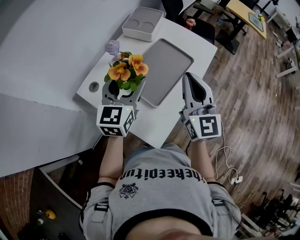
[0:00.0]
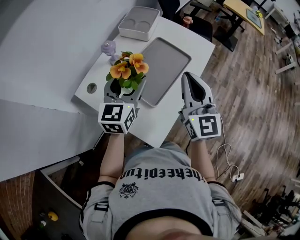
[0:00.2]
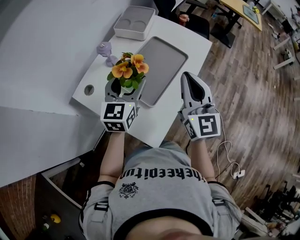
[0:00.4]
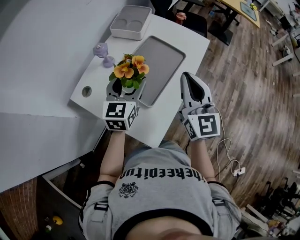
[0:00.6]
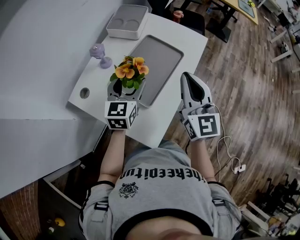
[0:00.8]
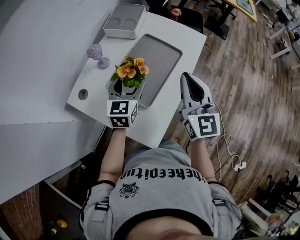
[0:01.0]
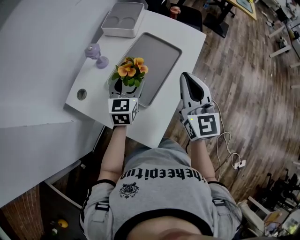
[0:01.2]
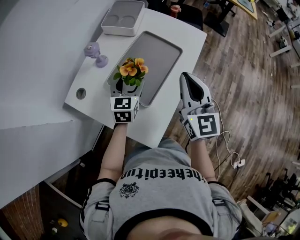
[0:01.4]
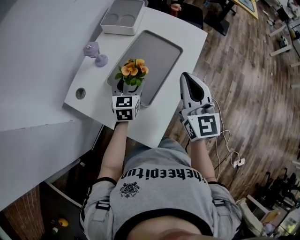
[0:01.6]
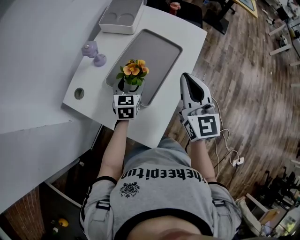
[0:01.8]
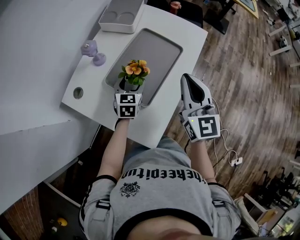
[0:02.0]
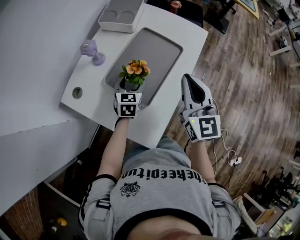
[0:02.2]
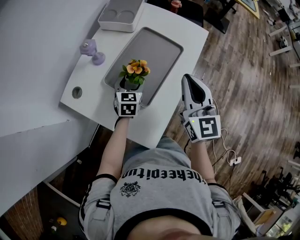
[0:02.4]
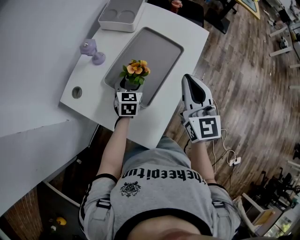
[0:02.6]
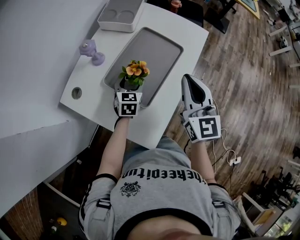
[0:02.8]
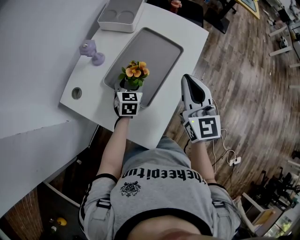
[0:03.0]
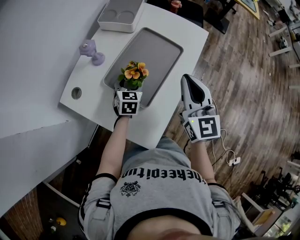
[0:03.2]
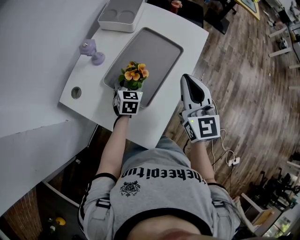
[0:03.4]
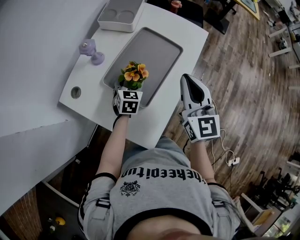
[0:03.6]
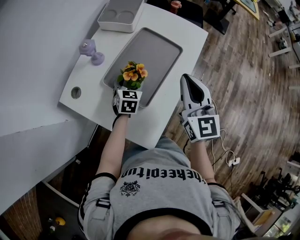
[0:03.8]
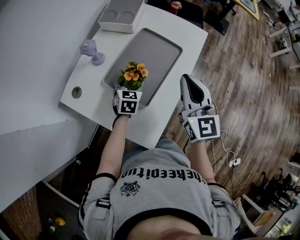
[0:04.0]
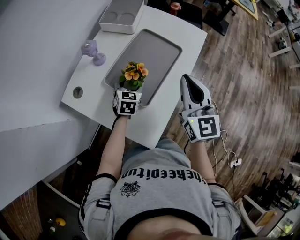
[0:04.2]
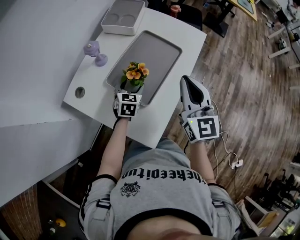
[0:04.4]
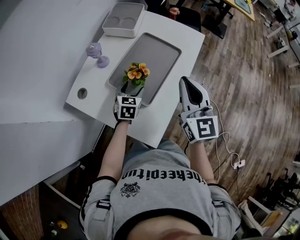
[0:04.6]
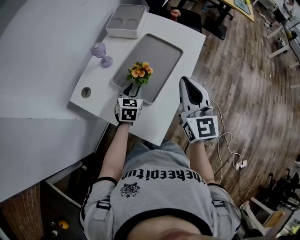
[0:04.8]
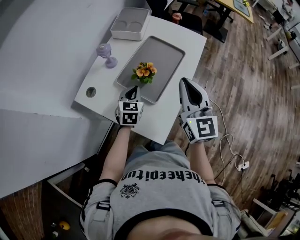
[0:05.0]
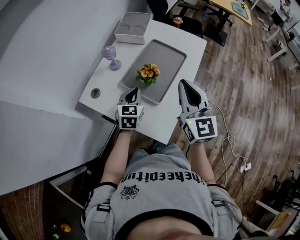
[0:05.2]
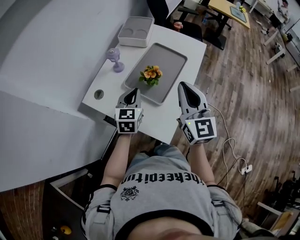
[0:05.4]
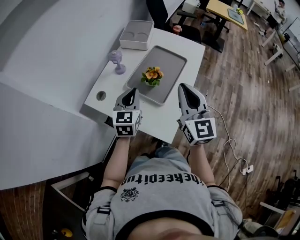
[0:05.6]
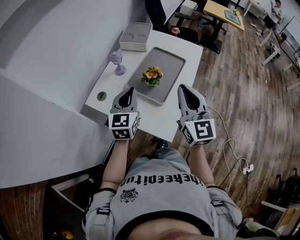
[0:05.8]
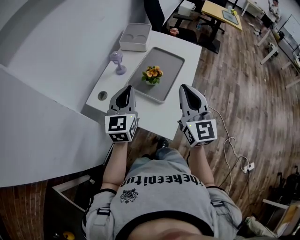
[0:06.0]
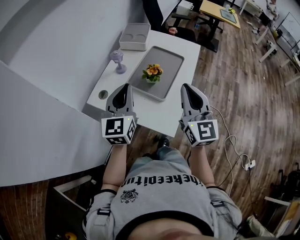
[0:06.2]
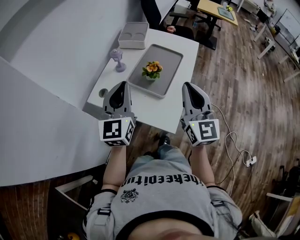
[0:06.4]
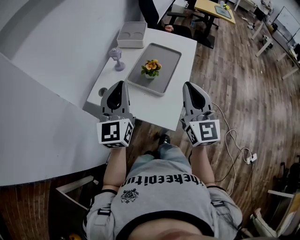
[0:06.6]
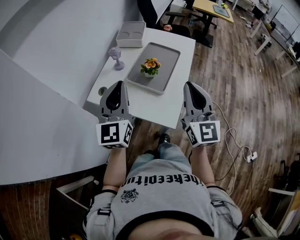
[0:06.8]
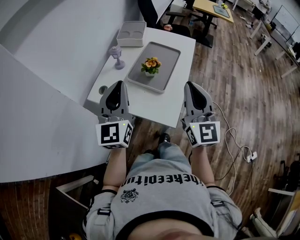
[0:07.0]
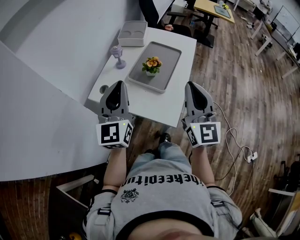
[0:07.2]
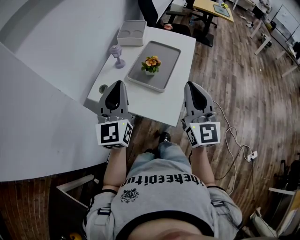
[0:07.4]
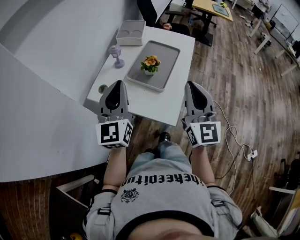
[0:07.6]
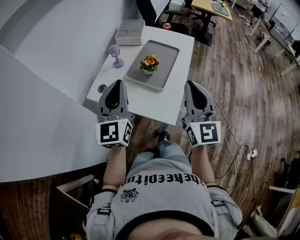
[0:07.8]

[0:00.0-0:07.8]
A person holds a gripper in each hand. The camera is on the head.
0.0 to 1.6 s: The right gripper shifts by some 5 cm, while the left gripper heads downward, covering about 20 cm.
1.6 to 3.2 s: The left gripper travels downward by approximately 10 cm.
3.2 to 4.6 s: The left gripper ends up approximately 5 cm from where it was; the right gripper shifts by roughly 5 cm.
4.6 to 6.2 s: The left gripper heads upward and backward, covering roughly 35 cm, tips its fingers upward by about 40 degrees, and closes; the right gripper shifts roughly 20 cm backward, to the left and upward.
6.2 to 7.8 s: The grippers both shift backward by roughly 5 cm.

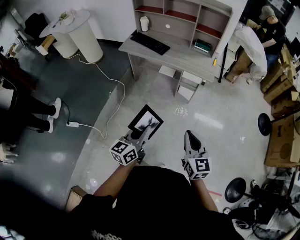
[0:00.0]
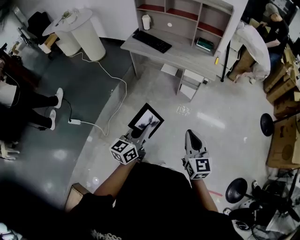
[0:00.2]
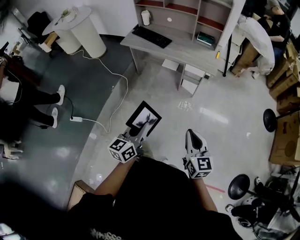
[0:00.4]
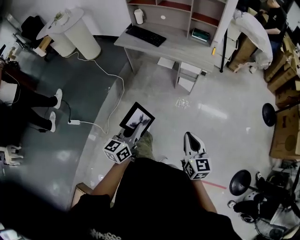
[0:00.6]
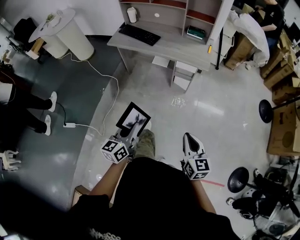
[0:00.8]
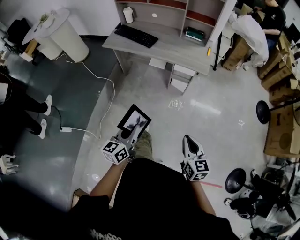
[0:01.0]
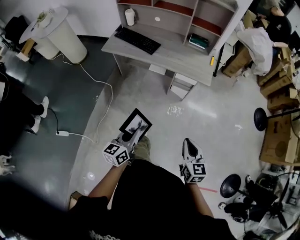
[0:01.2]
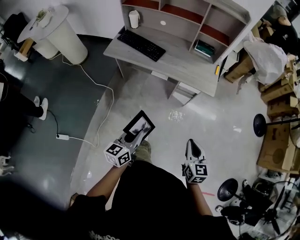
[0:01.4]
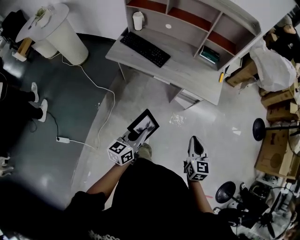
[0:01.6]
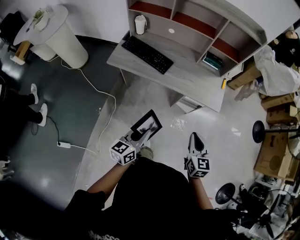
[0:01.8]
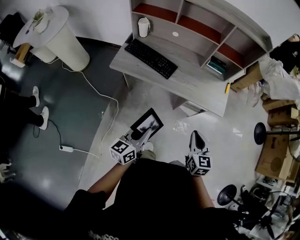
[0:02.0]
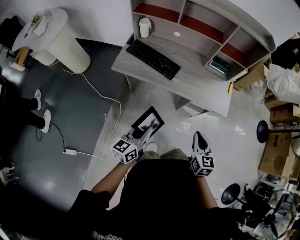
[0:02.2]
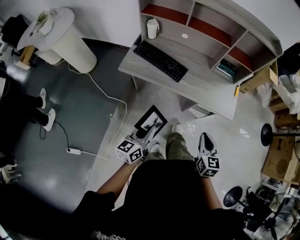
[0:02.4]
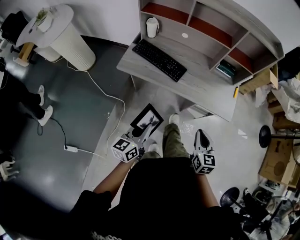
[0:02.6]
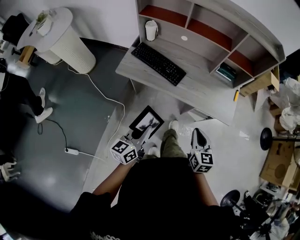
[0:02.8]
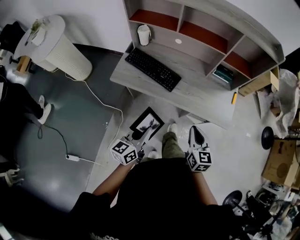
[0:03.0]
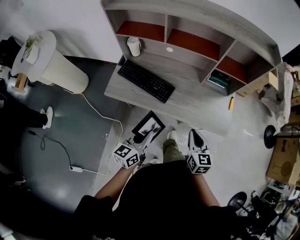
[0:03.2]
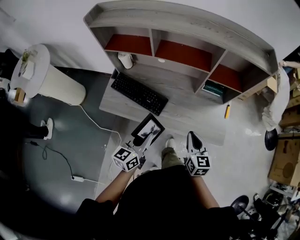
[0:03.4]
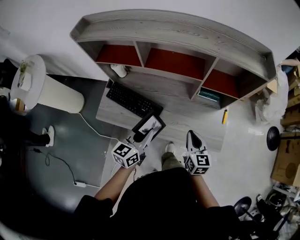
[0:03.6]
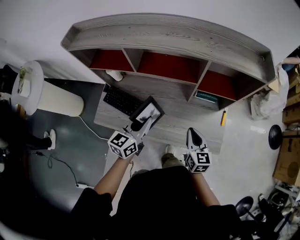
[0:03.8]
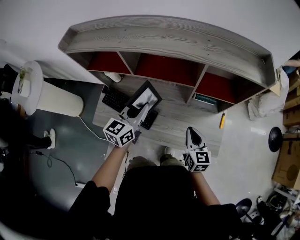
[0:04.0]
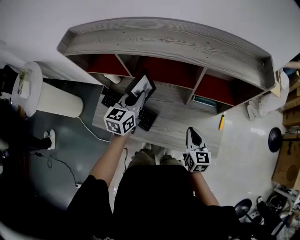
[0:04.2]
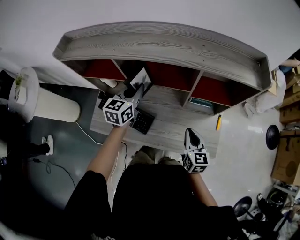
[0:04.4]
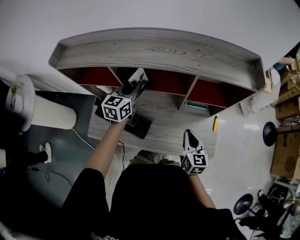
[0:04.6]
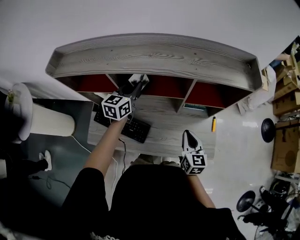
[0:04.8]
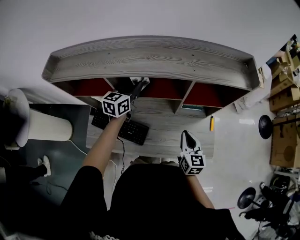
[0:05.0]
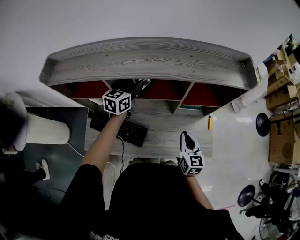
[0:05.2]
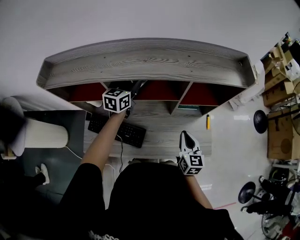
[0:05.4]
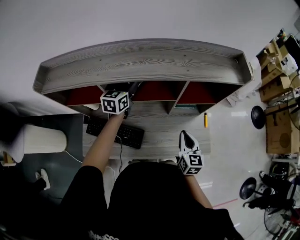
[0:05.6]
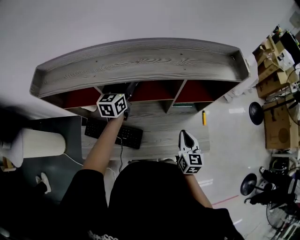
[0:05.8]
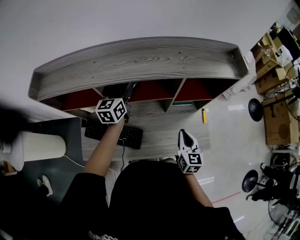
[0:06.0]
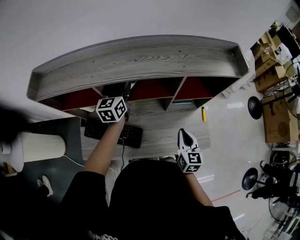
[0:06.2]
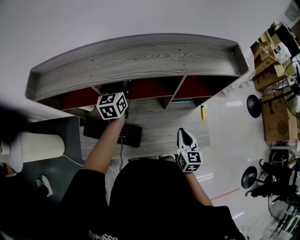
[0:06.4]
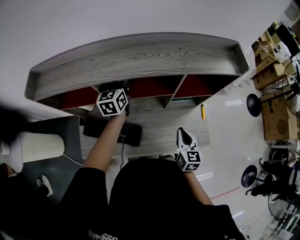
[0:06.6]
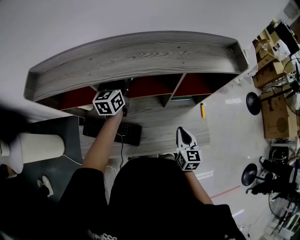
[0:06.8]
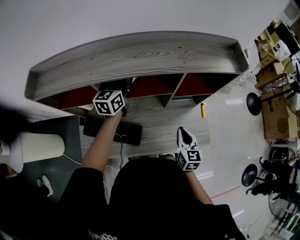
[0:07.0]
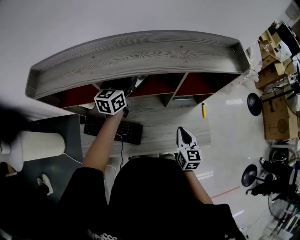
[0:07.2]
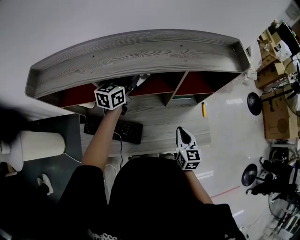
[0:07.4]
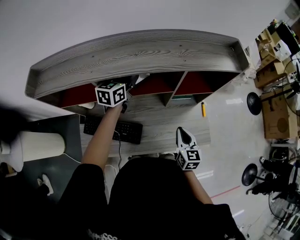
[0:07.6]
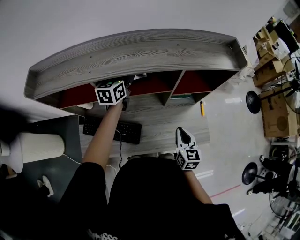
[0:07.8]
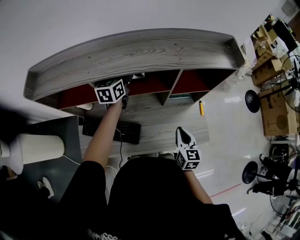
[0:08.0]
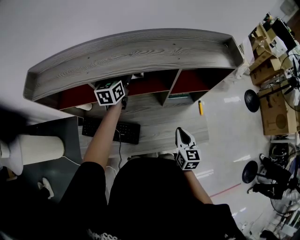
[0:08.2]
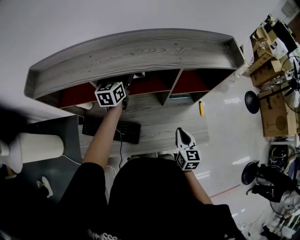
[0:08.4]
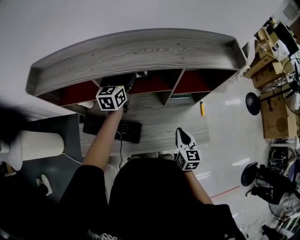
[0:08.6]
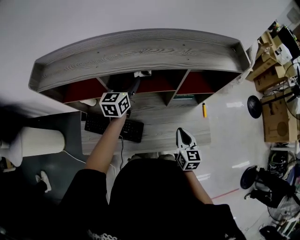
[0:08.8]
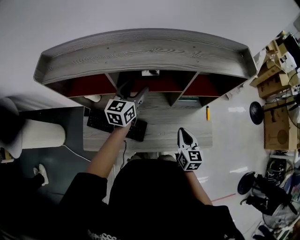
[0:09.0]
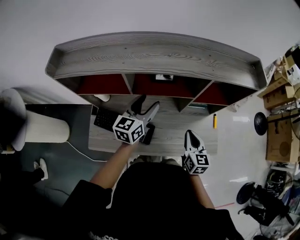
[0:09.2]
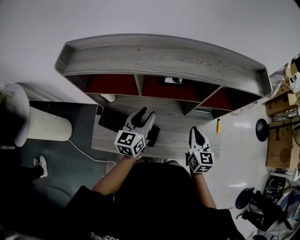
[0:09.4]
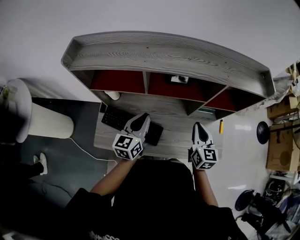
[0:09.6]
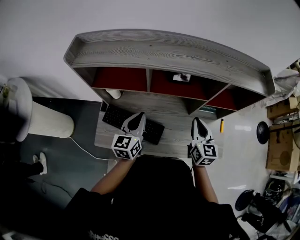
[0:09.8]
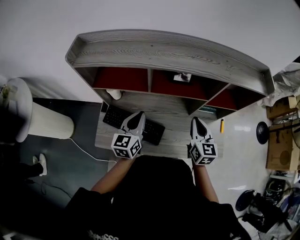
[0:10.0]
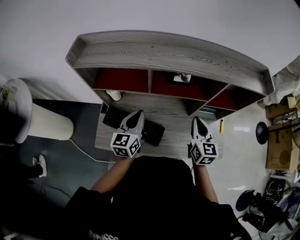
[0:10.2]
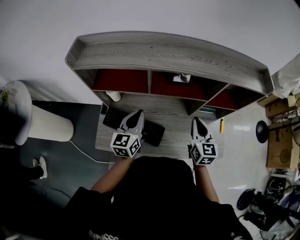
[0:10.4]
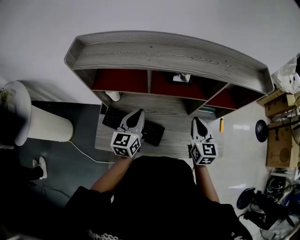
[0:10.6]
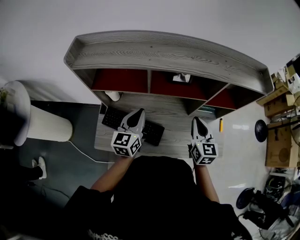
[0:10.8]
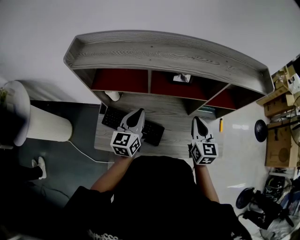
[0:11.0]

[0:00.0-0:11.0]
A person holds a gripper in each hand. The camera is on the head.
0.0 to 1.6 s: The grippers both shift forward by approximately 30 cm. The right gripper rotates approximately 20 degrees.
1.6 to 3.2 s: The left gripper goes approximately 25 cm forward; the right gripper goes roughly 30 cm forward and to the left.
3.2 to 4.8 s: The left gripper travels forward by roughly 50 cm; the right gripper heads forward, covering some 25 cm.
4.8 to 6.2 s: The grippers make only small movements.
7.8 to 9.4 s: The right gripper goes approximately 10 cm to the left and upward. Meanwhile the left gripper is displaced backward by roughly 20 cm, and opens, then closes again.
9.4 to 11.0 s: The left gripper shifts some 5 cm to the left, and closes, while the right gripper changes place by roughly 5 cm.

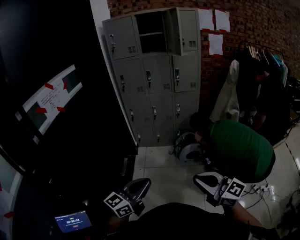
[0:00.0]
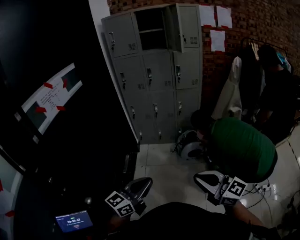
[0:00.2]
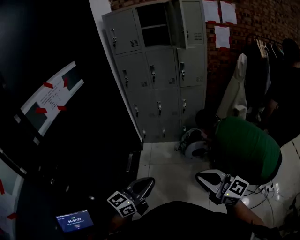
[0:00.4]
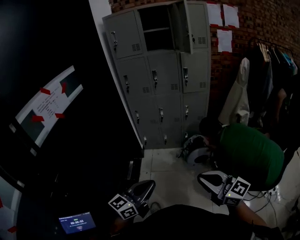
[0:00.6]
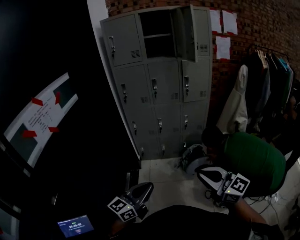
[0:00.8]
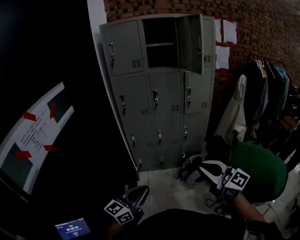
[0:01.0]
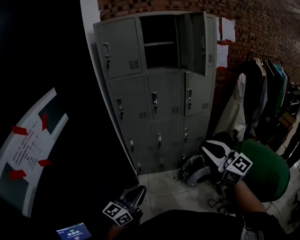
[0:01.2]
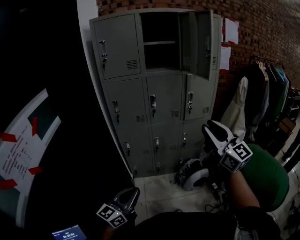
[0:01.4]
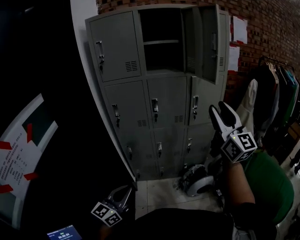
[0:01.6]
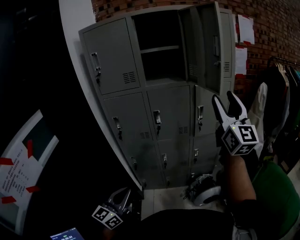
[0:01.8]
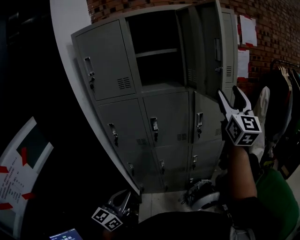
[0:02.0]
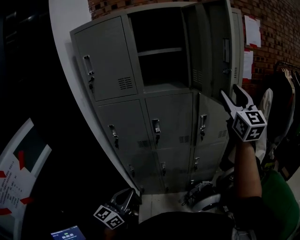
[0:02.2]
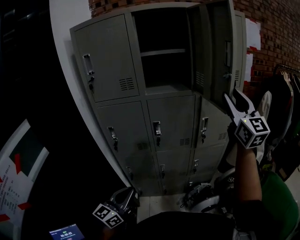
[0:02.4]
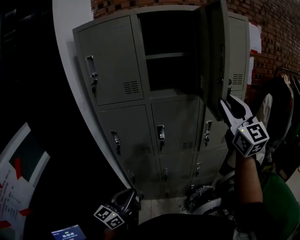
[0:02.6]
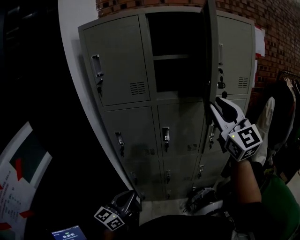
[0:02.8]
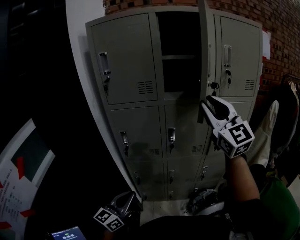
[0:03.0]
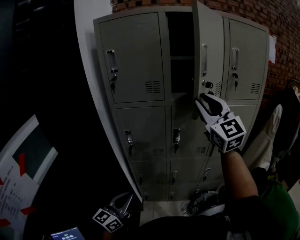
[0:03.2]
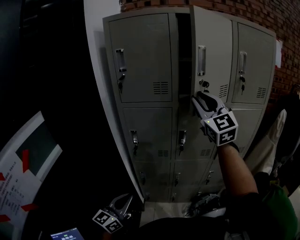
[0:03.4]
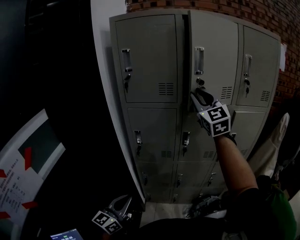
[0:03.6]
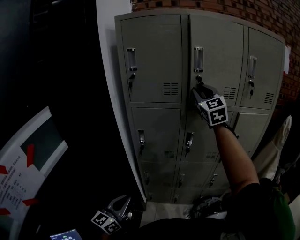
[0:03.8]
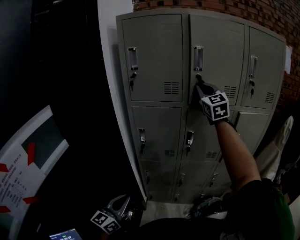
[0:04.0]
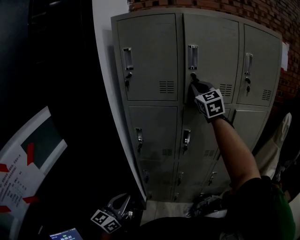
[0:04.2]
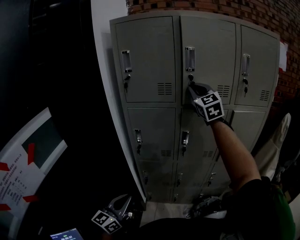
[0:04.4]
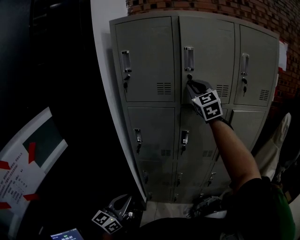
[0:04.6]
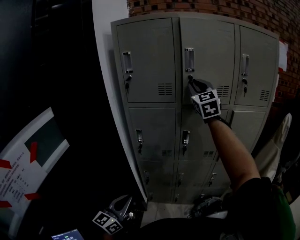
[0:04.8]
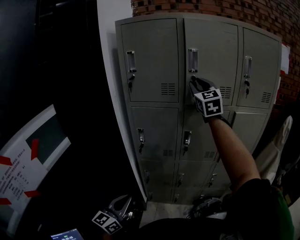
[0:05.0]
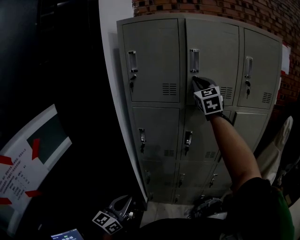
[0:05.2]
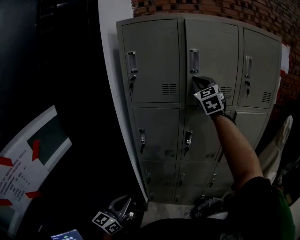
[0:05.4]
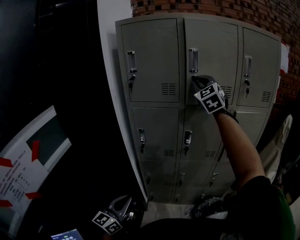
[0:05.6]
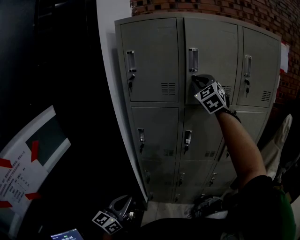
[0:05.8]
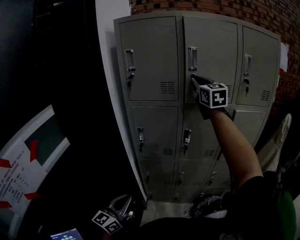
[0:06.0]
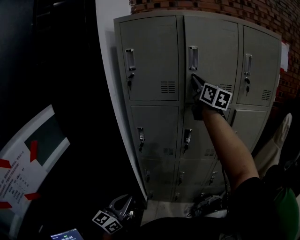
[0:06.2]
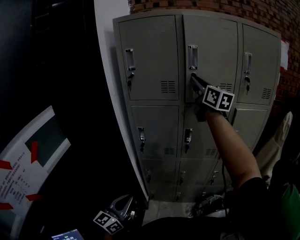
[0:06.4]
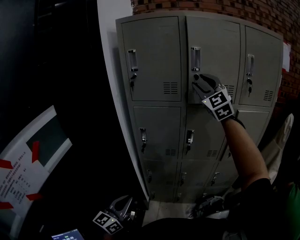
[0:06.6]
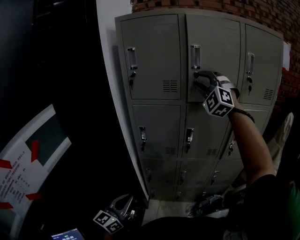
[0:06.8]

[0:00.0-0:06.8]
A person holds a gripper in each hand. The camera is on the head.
0.0 to 1.4 s: The two grippers travel together, forward, about 50 cm. The right gripper rotates some 40 degrees, and opens.
1.4 to 2.8 s: The left gripper shifts some 25 cm forward. Meanwhile the right gripper goes about 30 cm forward and upward, and opens and closes again.
2.8 to 4.0 s: The right gripper heads forward and to the left, covering approximately 25 cm, and closes its fingers; the left gripper heads to the left, covering roughly 10 cm.
4.0 to 5.4 s: The grippers stay close to where they were, moving slightly.
5.4 to 6.8 s: The right gripper twists roughly 40 degrees counterclockwise, seen from behind, and opens.
